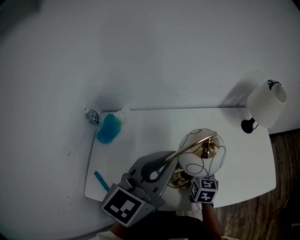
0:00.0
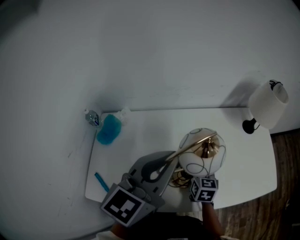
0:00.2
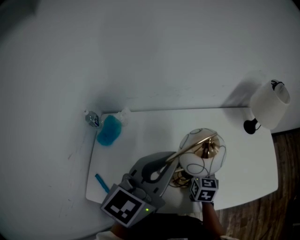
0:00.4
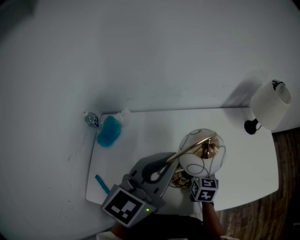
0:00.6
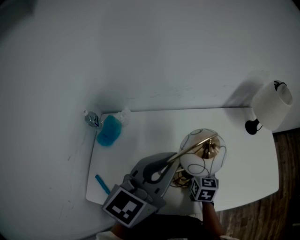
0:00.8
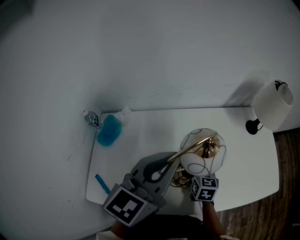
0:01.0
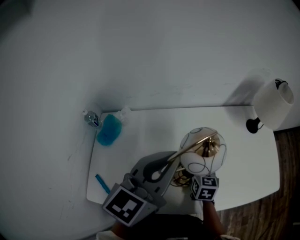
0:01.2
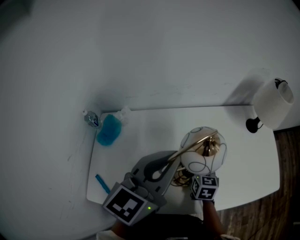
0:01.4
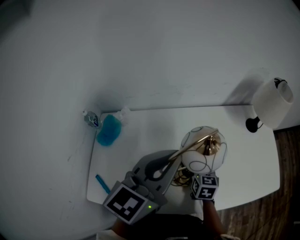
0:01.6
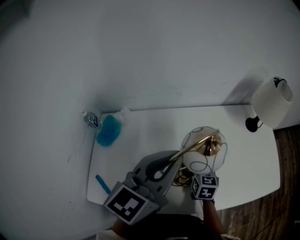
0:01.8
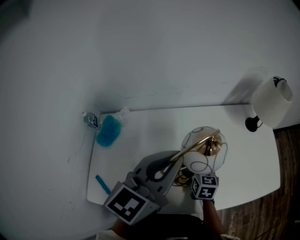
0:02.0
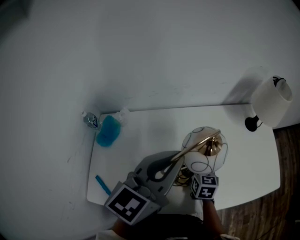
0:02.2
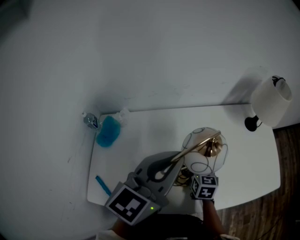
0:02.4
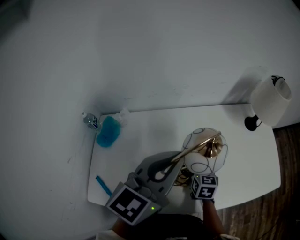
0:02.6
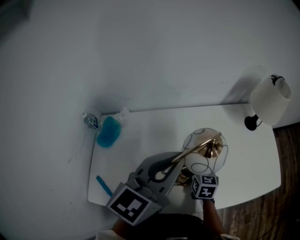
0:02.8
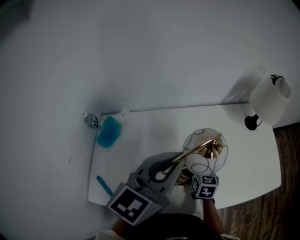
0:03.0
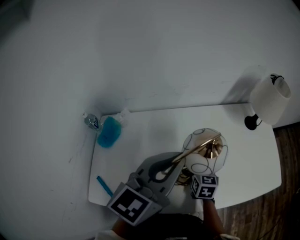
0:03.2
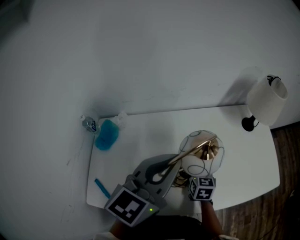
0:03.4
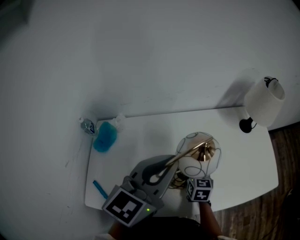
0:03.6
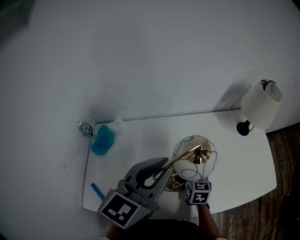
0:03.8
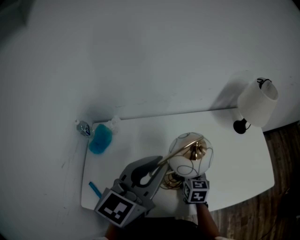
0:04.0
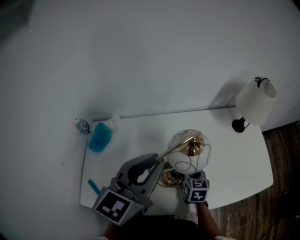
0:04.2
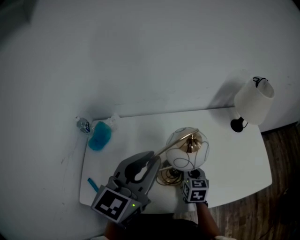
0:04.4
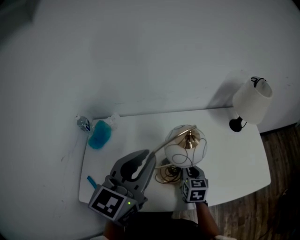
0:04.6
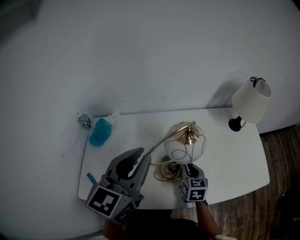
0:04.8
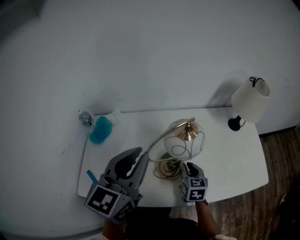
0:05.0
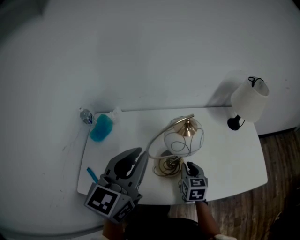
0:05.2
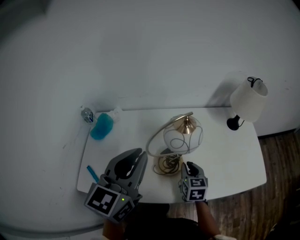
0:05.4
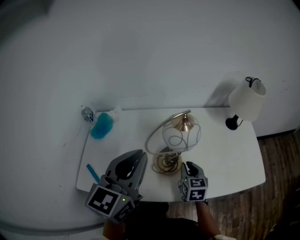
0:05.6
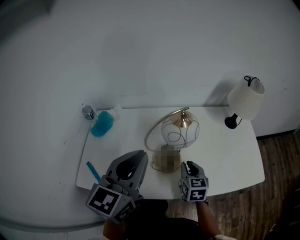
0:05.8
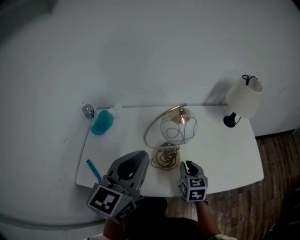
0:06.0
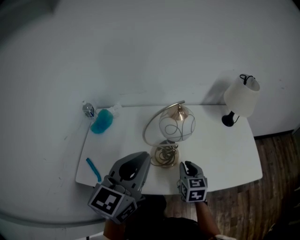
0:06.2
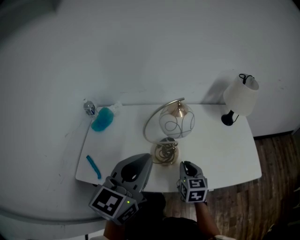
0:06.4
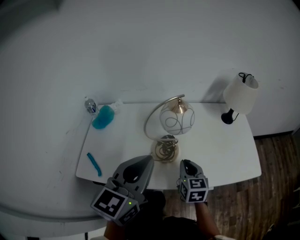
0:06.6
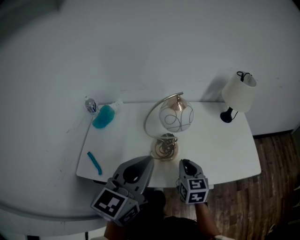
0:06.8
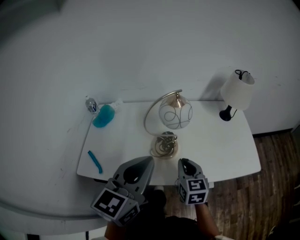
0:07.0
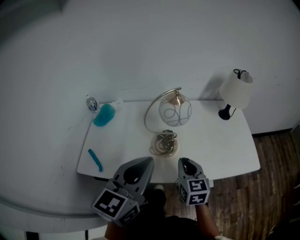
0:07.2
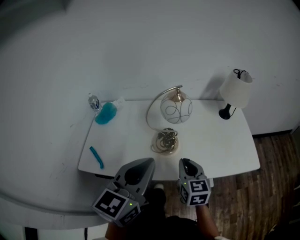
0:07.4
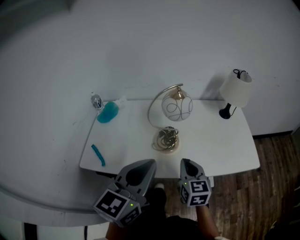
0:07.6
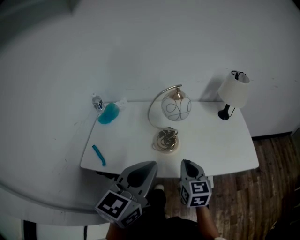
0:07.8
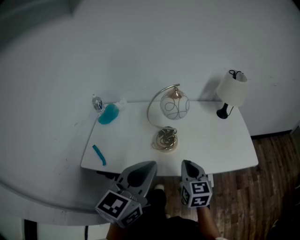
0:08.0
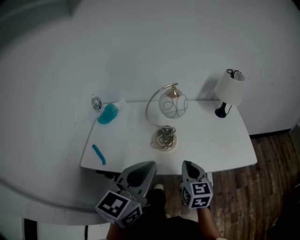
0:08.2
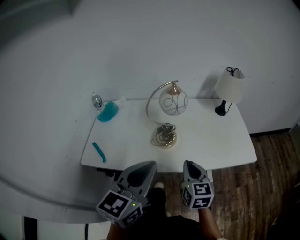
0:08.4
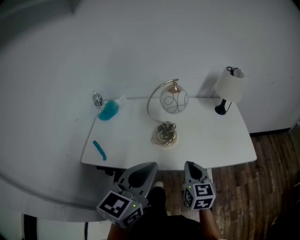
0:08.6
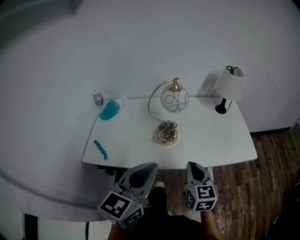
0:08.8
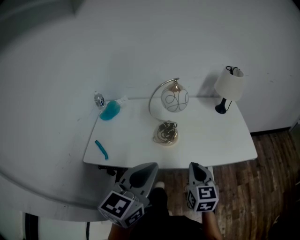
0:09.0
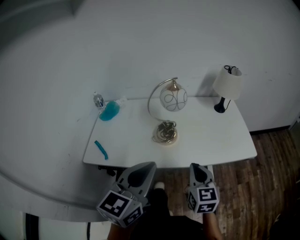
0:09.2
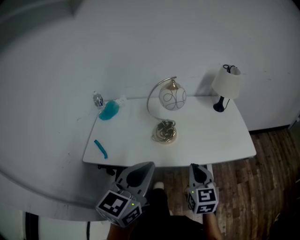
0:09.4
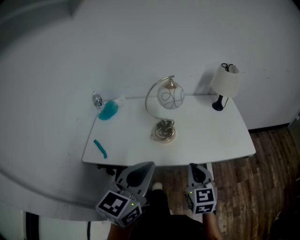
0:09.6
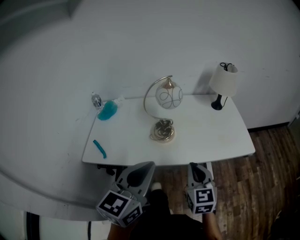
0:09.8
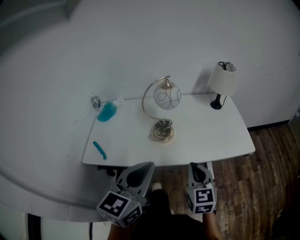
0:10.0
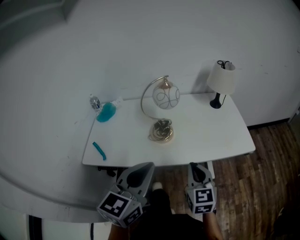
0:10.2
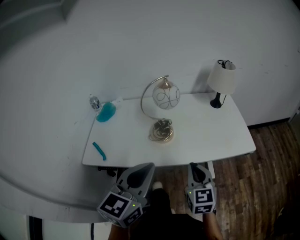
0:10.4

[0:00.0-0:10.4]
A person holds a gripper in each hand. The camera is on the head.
0:00.0 to 0:04.4: There are only small adjustments of the grippers.
0:04.4 to 0:06.0: The right gripper shifts some 10 cm backward and upward. Meanwhile the left gripper is displaced backward by roughly 10 cm.
0:06.0 to 0:07.4: The right gripper is displaced backward and upward by approximately 10 cm; the left gripper shifts roughly 10 cm backward.
0:07.4 to 0:09.0: Both grippers travel together backward, approximately 10 cm.
0:09.0 to 0:10.4: The grippers stay close to where they were, moving slightly.

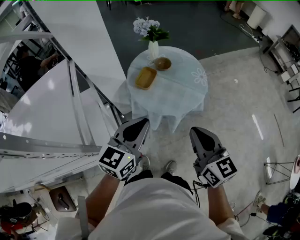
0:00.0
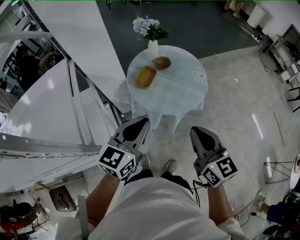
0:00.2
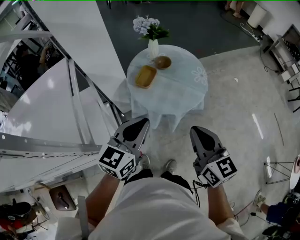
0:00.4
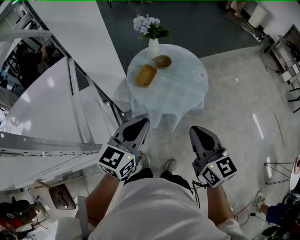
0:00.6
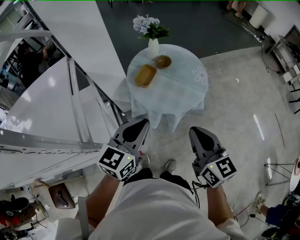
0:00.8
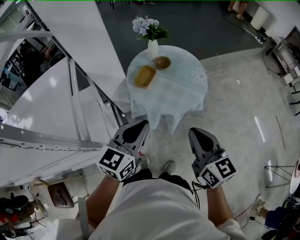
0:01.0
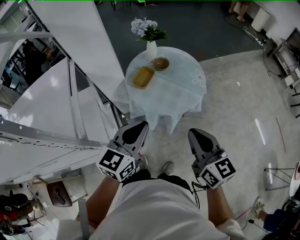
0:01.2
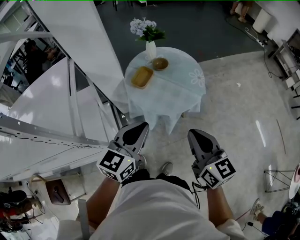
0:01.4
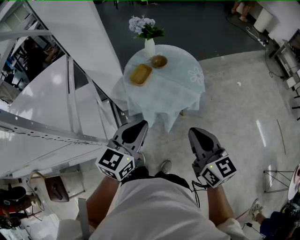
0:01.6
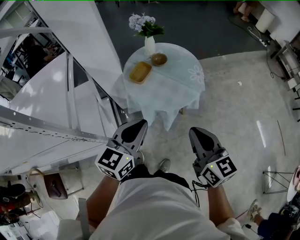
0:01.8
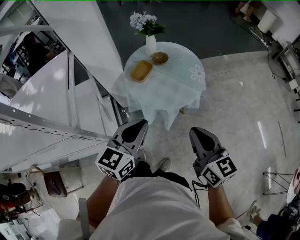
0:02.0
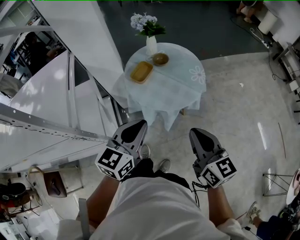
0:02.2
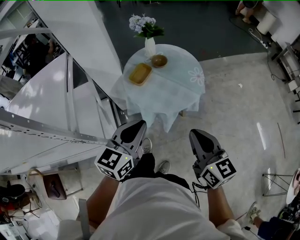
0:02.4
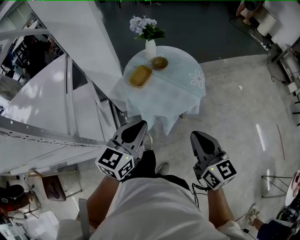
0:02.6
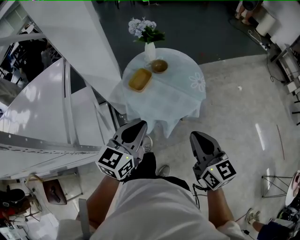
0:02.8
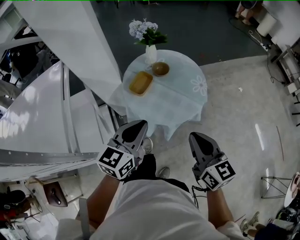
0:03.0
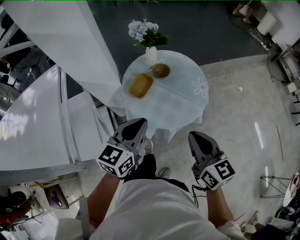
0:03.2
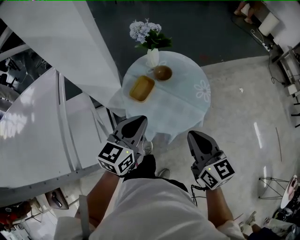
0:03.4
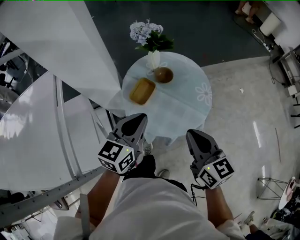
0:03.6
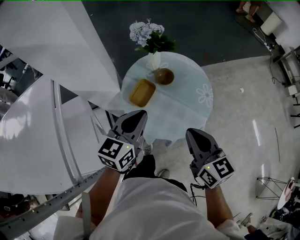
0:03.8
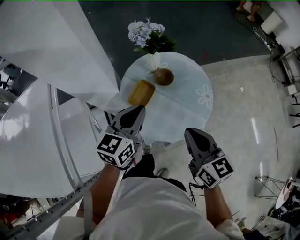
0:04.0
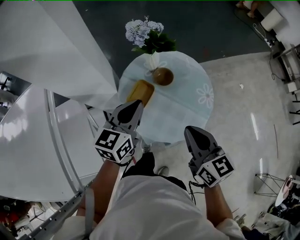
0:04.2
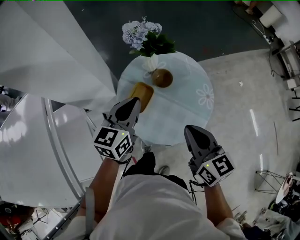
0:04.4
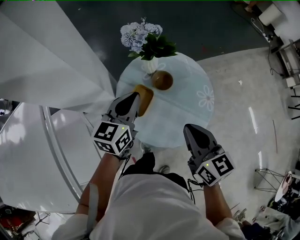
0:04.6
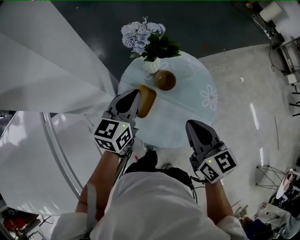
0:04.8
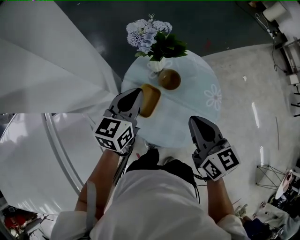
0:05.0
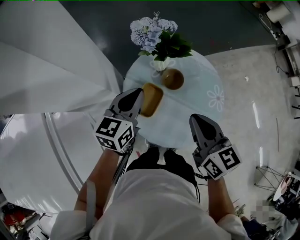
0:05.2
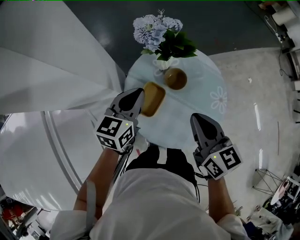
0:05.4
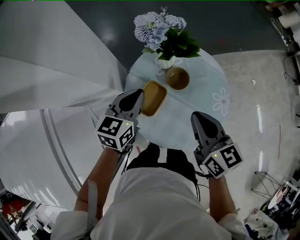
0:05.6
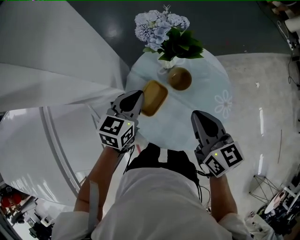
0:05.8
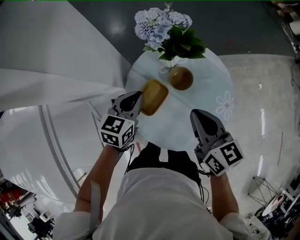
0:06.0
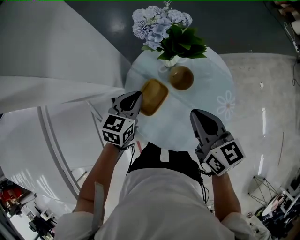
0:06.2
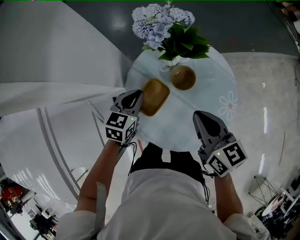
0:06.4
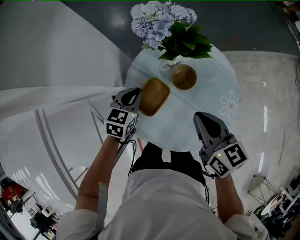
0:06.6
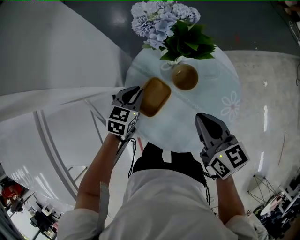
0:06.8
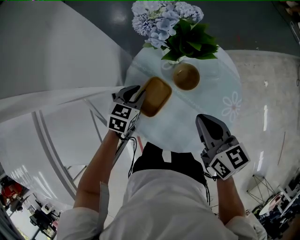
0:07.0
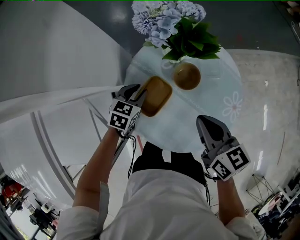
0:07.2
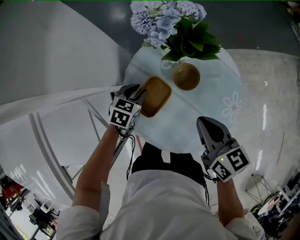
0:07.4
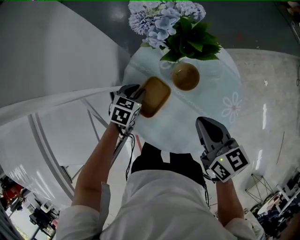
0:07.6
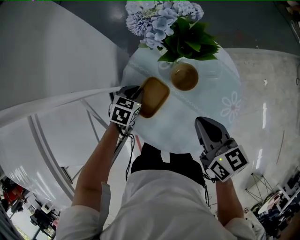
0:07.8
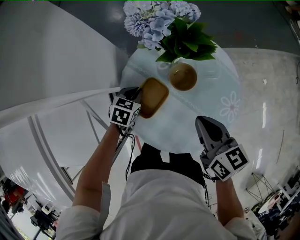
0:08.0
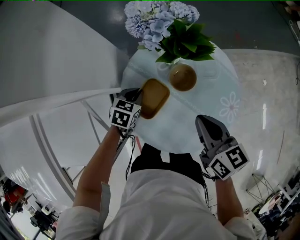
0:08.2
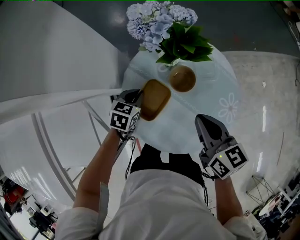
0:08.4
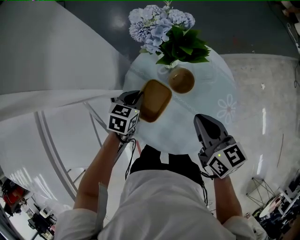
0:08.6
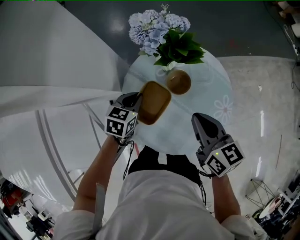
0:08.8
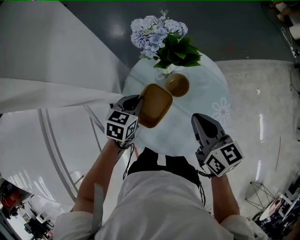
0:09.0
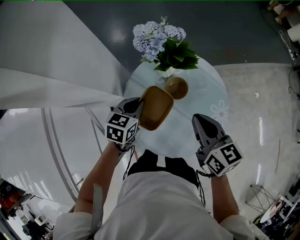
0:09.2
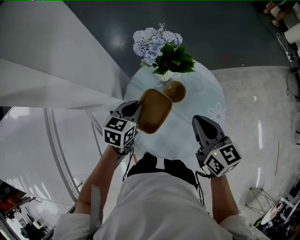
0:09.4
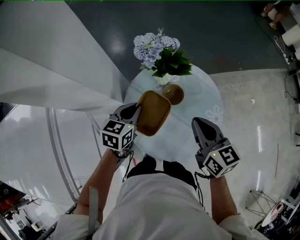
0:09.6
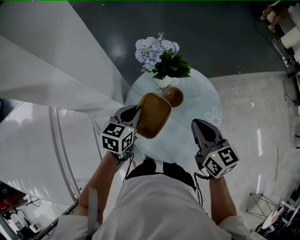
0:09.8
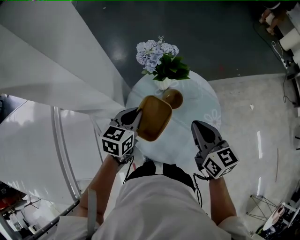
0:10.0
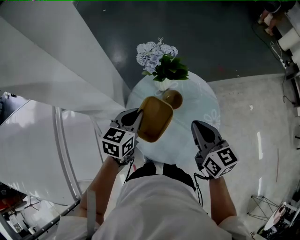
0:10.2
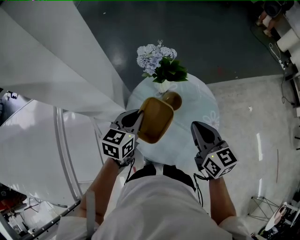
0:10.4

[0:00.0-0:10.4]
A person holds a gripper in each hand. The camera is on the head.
0:00.0 to 0:01.4: Both grippers move to the right, some 5 cm.
0:01.4 to 0:03.0: Both grippers move forward, roughly 10 cm.
0:03.0 to 0:04.4: The grippers both shift forward by roughly 25 cm.
0:04.4 to 0:06.0: The left gripper travels downward and forward by approximately 15 cm; the right gripper heads forward and downward, covering approximately 15 cm.
0:06.0 to 0:07.4: The left gripper goes some 15 cm downward, rotates roughly 20 degrees, and opens its fingers. Meanwhile the right gripper heads downward, covering about 5 cm.
0:07.4 to 0:09.0: The right gripper shifts approximately 5 cm upward, while the left gripper is displaced upward by approximately 10 cm, and closes up.
0:09.0 to 0:10.4: The left gripper heads upward, covering approximately 15 cm; the right gripper is displaced upward by roughly 5 cm.

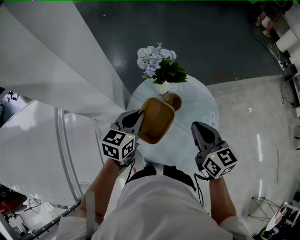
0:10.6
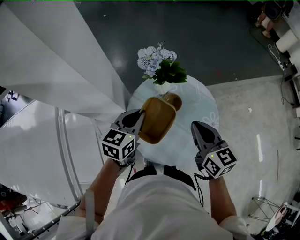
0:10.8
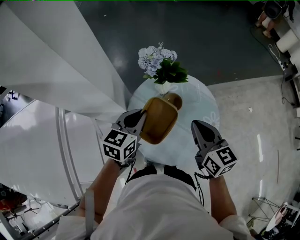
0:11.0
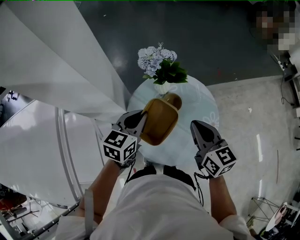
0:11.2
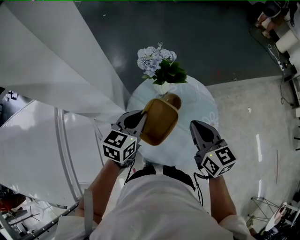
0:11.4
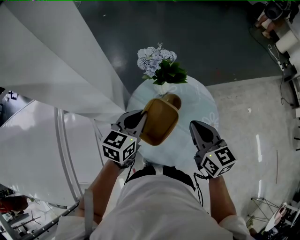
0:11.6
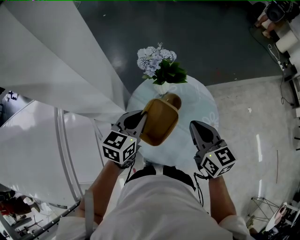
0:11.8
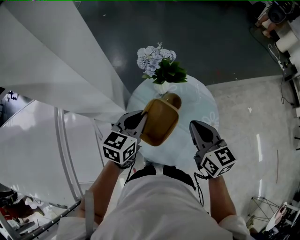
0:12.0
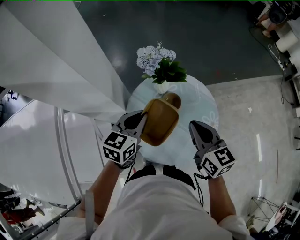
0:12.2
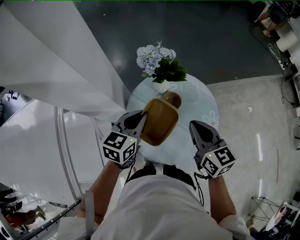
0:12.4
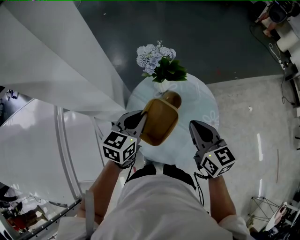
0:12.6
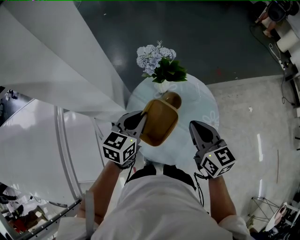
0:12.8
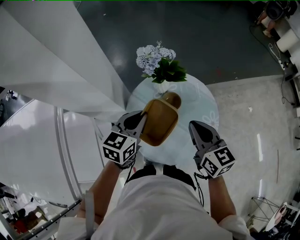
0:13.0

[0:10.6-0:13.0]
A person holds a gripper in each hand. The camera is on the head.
0:10.6 to 0:11.8: The grippers make only small movements.
0:11.8 to 0:13.0: The two grippers keep their place.

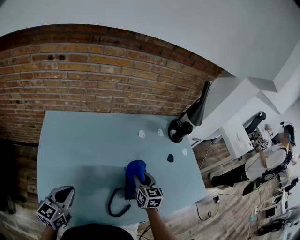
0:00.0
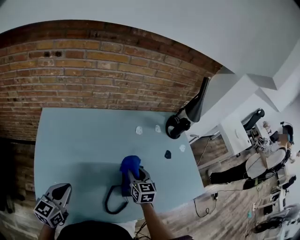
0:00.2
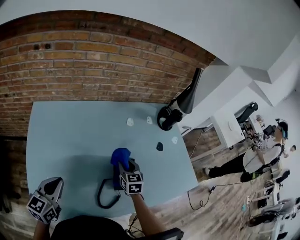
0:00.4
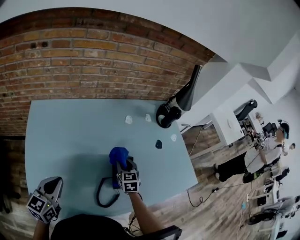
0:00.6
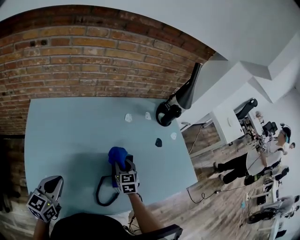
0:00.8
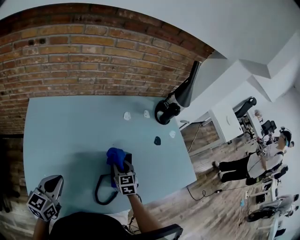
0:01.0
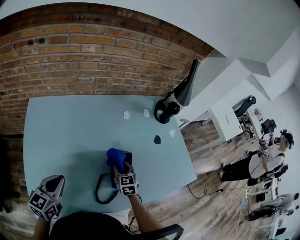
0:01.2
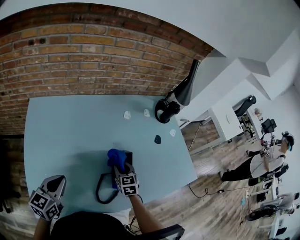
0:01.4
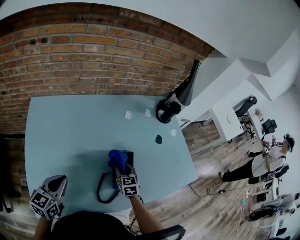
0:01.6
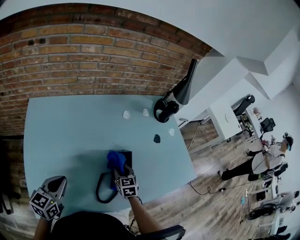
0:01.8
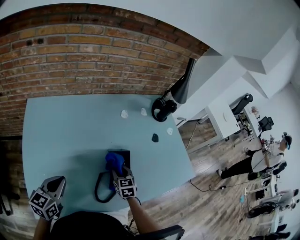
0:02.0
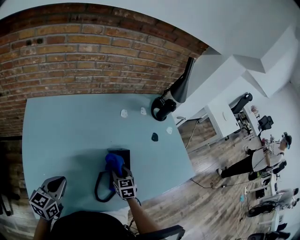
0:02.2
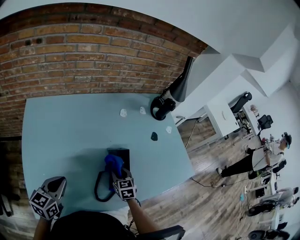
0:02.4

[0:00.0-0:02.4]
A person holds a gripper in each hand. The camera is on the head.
0:00.0 to 0:01.2: The right gripper travels downward by some 10 cm.
0:01.2 to 0:02.4: The right gripper shifts by about 5 cm.
